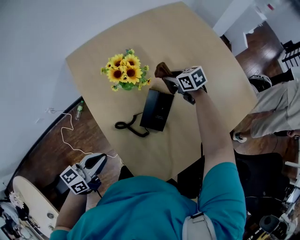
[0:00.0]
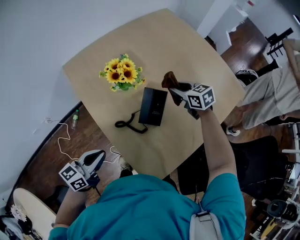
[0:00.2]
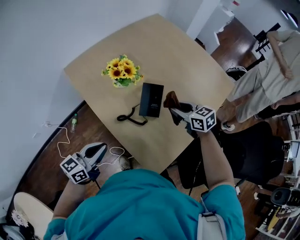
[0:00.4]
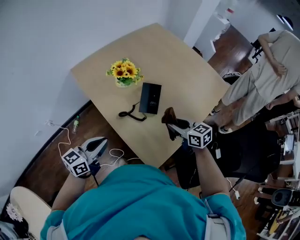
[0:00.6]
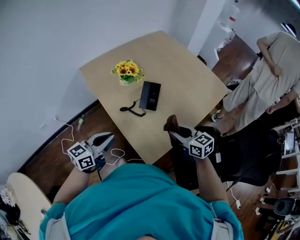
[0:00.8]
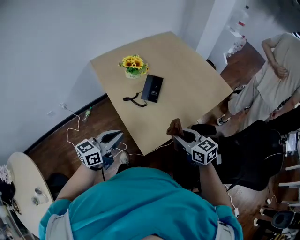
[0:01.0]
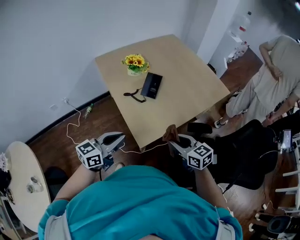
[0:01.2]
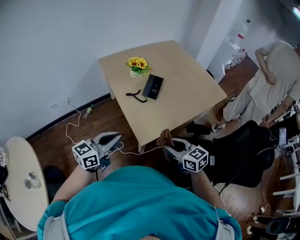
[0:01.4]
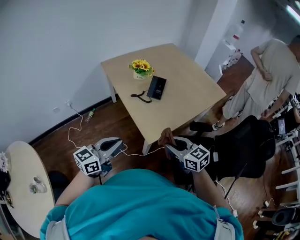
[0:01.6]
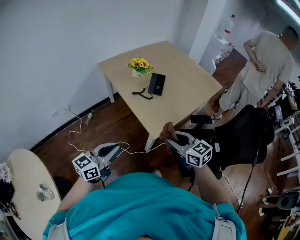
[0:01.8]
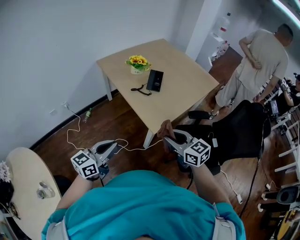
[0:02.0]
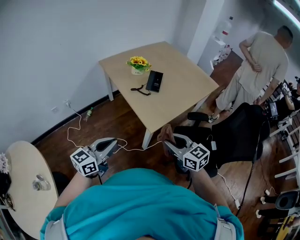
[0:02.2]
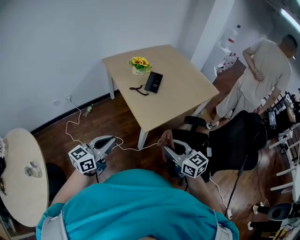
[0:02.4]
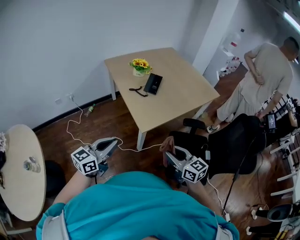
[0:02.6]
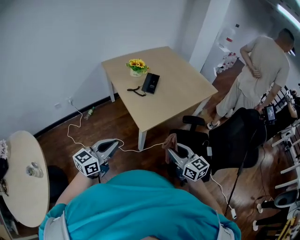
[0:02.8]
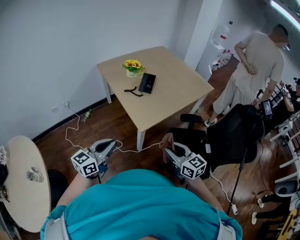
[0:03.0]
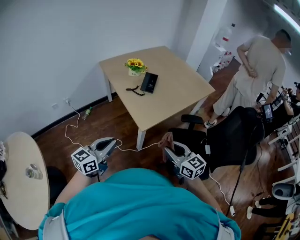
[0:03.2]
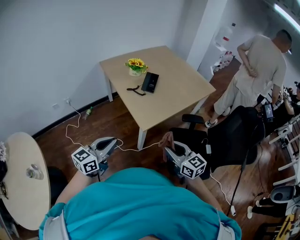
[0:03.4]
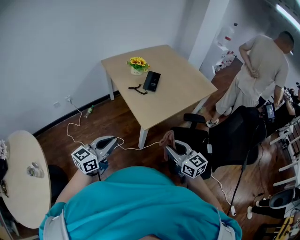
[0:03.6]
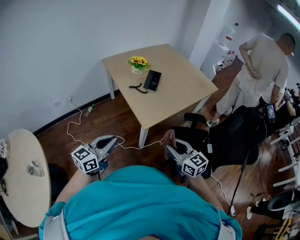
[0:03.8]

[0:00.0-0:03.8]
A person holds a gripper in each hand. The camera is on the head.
0:00.0 to 0:01.2: The left gripper shifts about 30 cm backward, upward and to the right, while the right gripper goes roughly 60 cm backward, and turns by roughly 20 degrees.
0:01.2 to 0:02.6: The two grippers go about 20 cm backward.
0:02.6 to 0:03.8: There are only small adjustments of the grippers.

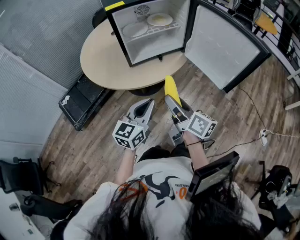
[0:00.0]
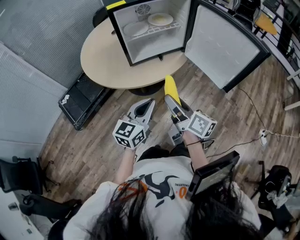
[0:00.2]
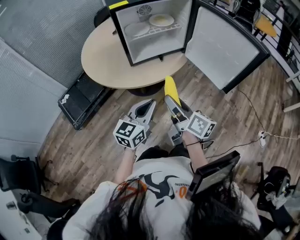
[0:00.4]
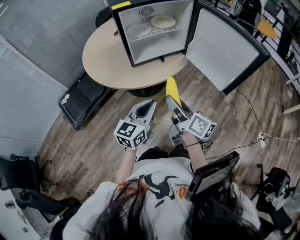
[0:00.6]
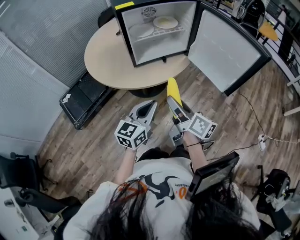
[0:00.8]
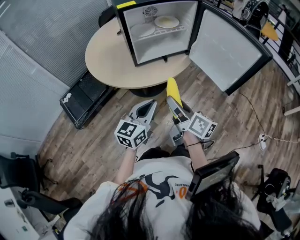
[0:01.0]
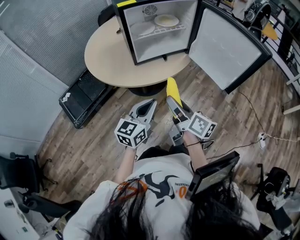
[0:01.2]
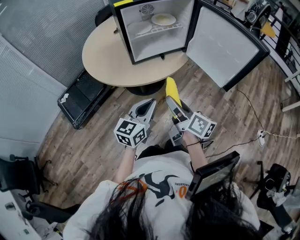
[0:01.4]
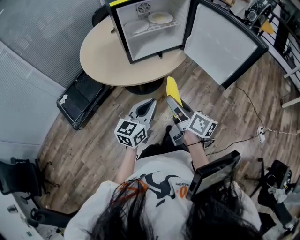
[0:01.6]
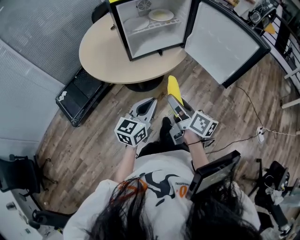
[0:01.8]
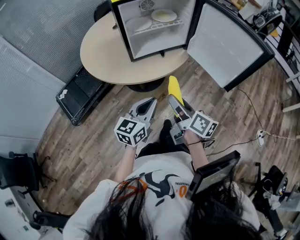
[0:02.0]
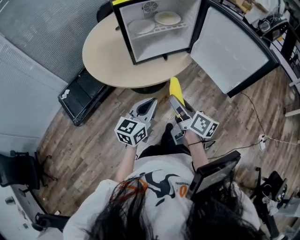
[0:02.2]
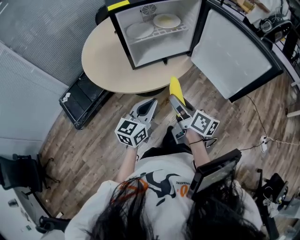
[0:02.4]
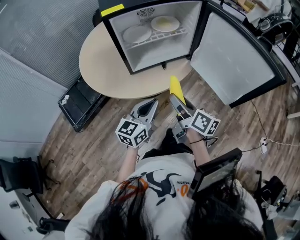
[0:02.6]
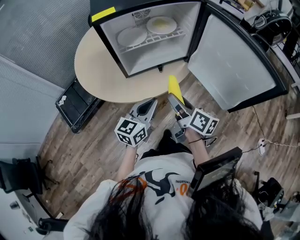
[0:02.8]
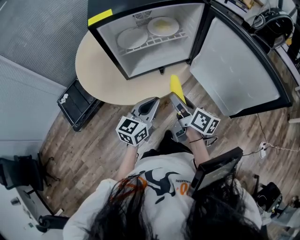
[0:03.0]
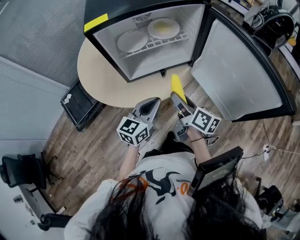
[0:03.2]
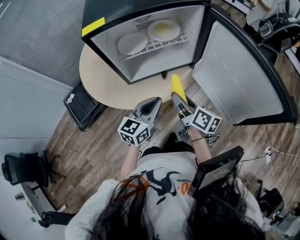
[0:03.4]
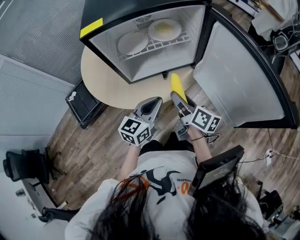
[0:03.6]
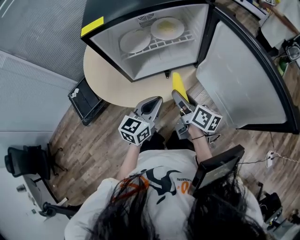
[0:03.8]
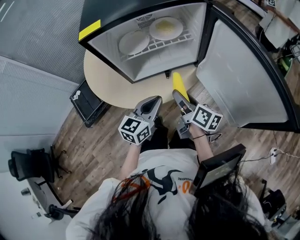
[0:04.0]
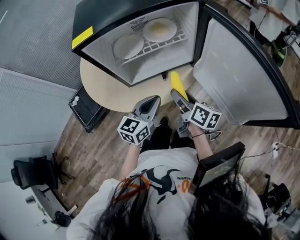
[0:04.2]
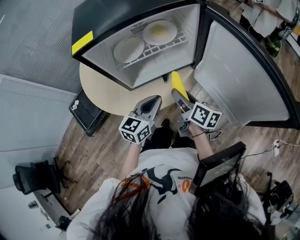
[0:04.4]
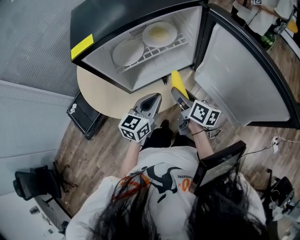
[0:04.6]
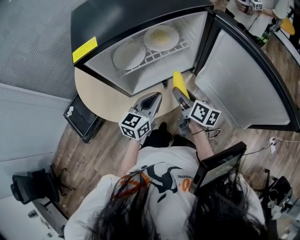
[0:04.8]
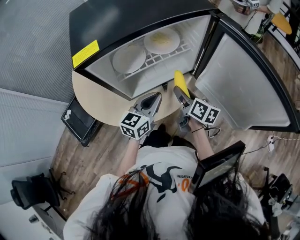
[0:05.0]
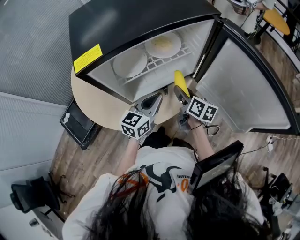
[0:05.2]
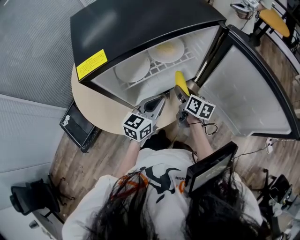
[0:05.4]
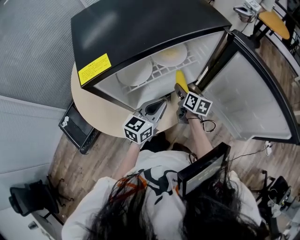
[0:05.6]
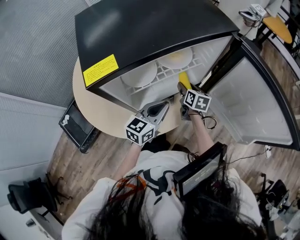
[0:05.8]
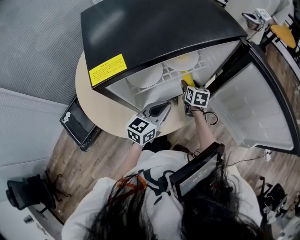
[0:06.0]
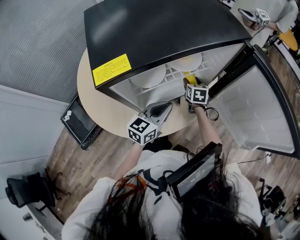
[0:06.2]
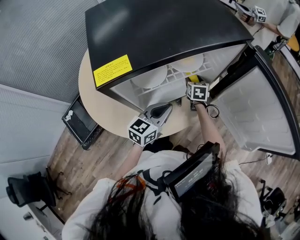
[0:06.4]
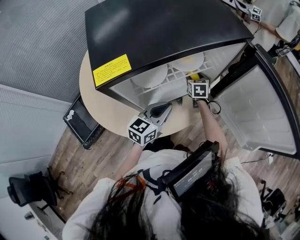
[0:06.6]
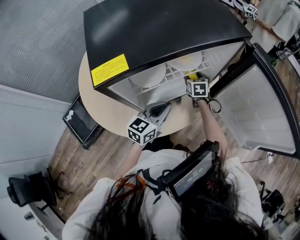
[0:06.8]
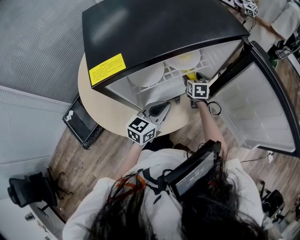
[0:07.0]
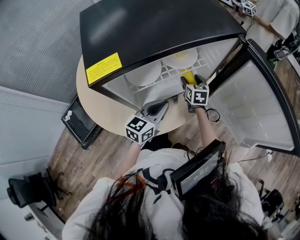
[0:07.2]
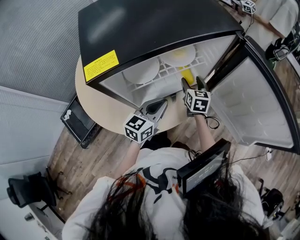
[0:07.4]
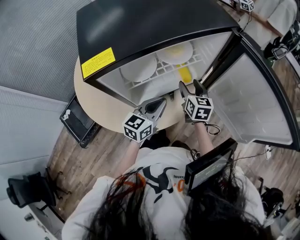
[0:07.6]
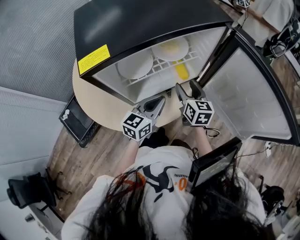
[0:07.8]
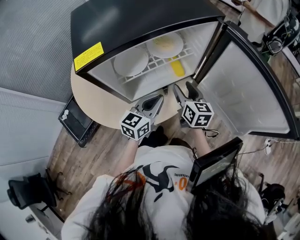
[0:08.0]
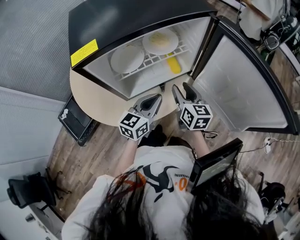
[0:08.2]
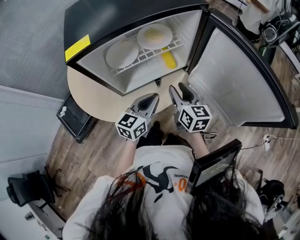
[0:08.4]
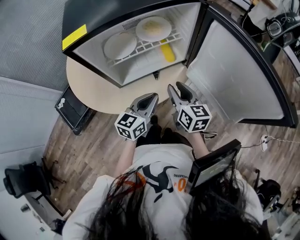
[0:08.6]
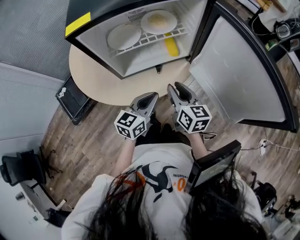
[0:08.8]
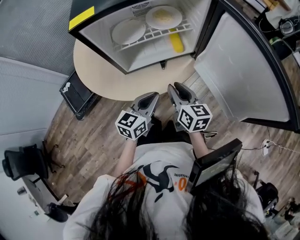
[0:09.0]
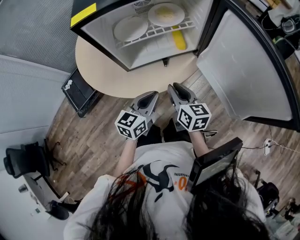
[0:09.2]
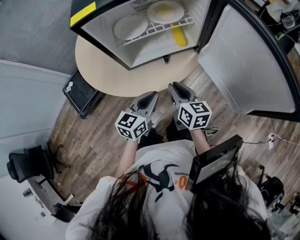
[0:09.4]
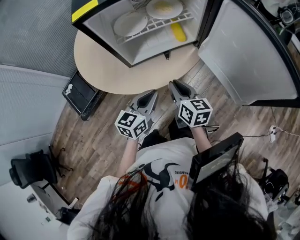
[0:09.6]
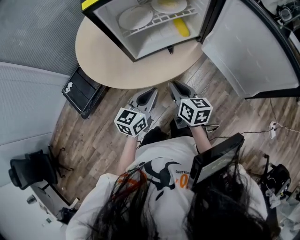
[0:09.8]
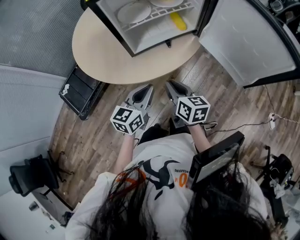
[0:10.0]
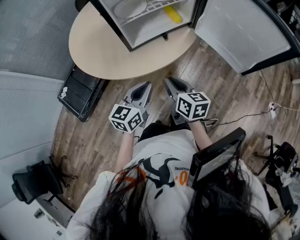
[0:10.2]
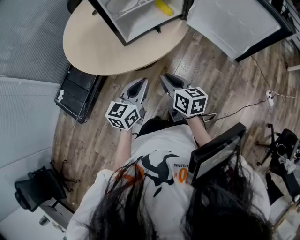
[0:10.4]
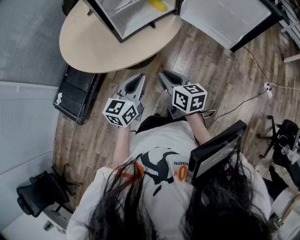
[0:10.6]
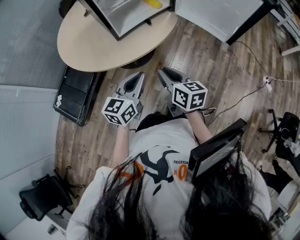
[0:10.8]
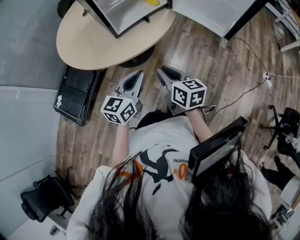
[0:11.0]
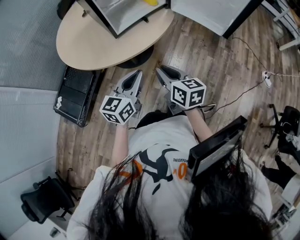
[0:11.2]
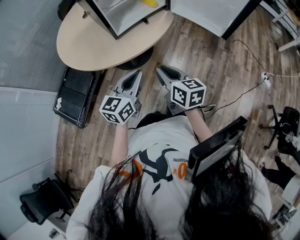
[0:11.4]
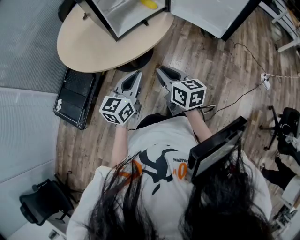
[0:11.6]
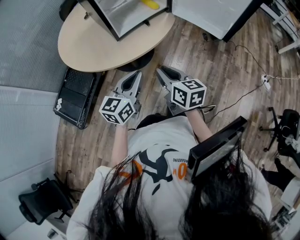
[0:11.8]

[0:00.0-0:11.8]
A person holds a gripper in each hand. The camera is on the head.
0:00.0 to 0:01.4: The grippers stay close to where they were, moving slightly.
0:01.4 to 0:03.0: The grippers both shift forward by about 15 cm.
0:03.0 to 0:04.4: The grippers both shift forward by roughly 5 cm.
0:04.4 to 0:06.0: The right gripper heads forward and downward, covering about 25 cm, and turns by some 40 degrees. Meanwhile the left gripper travels forward and to the left by approximately 10 cm.
0:06.0 to 0:07.4: The grippers make only small movements.
0:07.4 to 0:08.8: The left gripper goes roughly 10 cm backward and to the right. Meanwhile the right gripper heads backward, covering roughly 20 cm, swivels approximately 30 degrees, and closes up.
0:08.8 to 0:10.4: Both grippers move backward and to the left, about 20 cm.
0:10.4 to 0:11.8: The grippers both shift backward by some 5 cm.

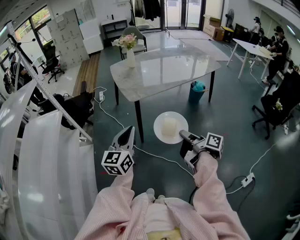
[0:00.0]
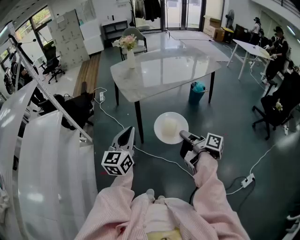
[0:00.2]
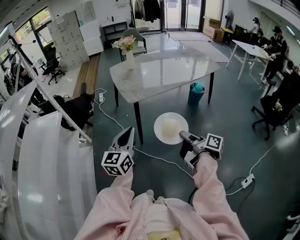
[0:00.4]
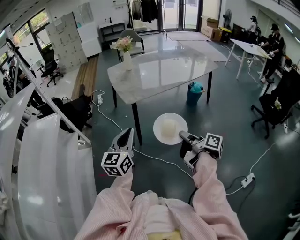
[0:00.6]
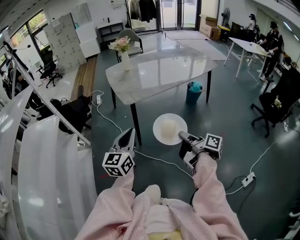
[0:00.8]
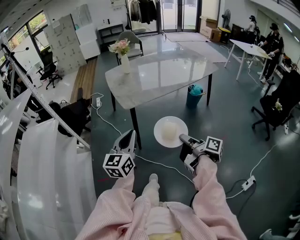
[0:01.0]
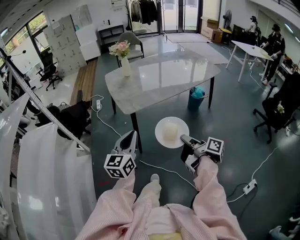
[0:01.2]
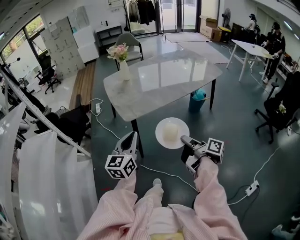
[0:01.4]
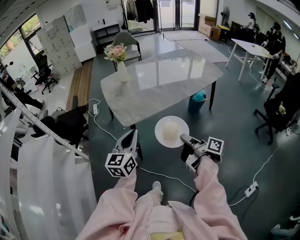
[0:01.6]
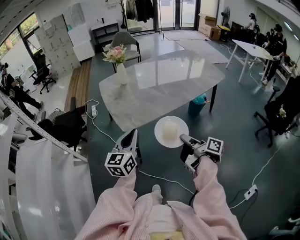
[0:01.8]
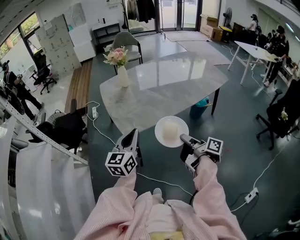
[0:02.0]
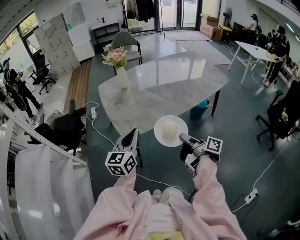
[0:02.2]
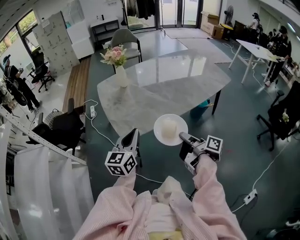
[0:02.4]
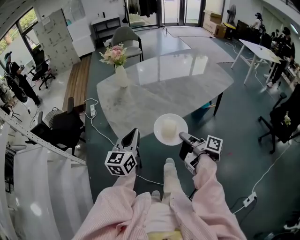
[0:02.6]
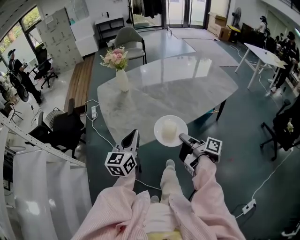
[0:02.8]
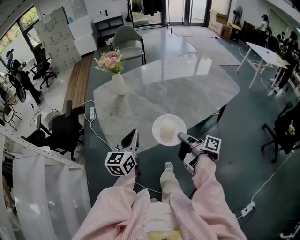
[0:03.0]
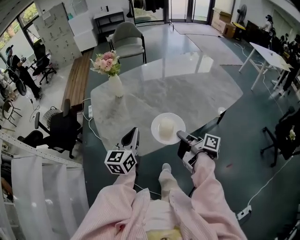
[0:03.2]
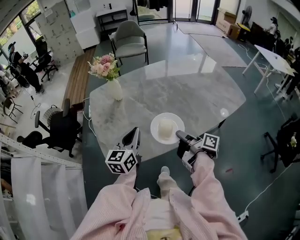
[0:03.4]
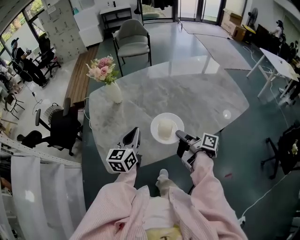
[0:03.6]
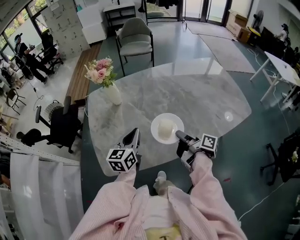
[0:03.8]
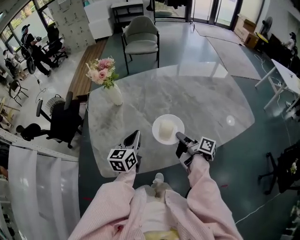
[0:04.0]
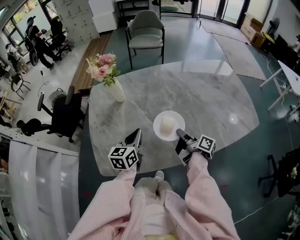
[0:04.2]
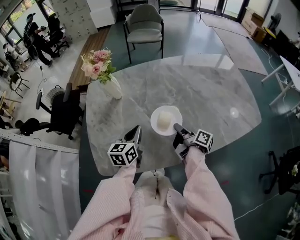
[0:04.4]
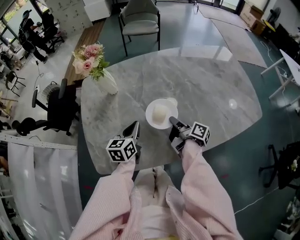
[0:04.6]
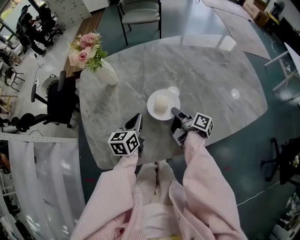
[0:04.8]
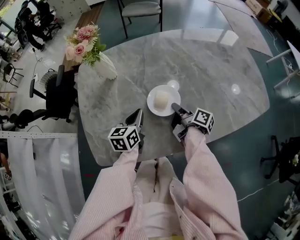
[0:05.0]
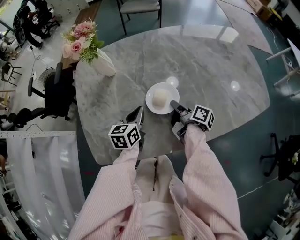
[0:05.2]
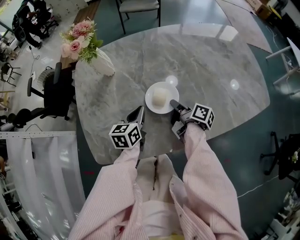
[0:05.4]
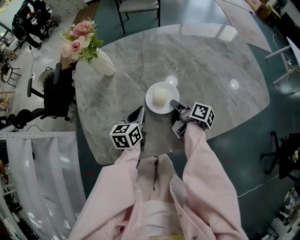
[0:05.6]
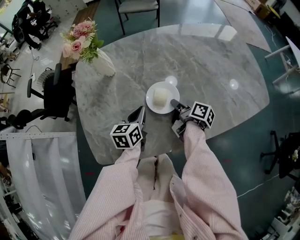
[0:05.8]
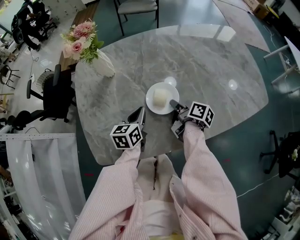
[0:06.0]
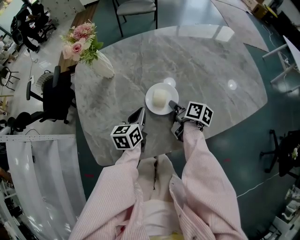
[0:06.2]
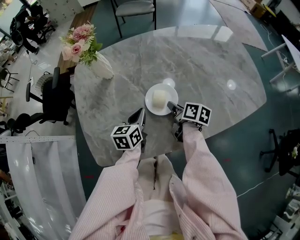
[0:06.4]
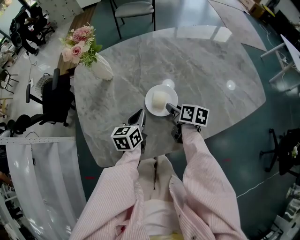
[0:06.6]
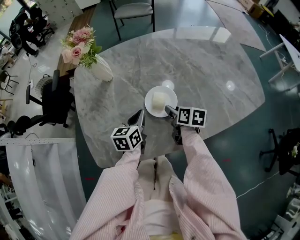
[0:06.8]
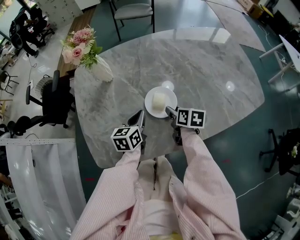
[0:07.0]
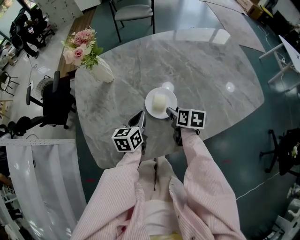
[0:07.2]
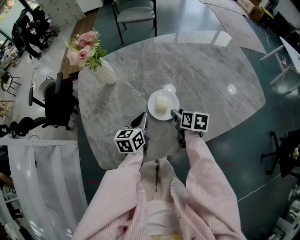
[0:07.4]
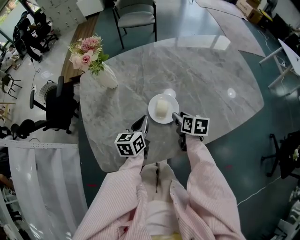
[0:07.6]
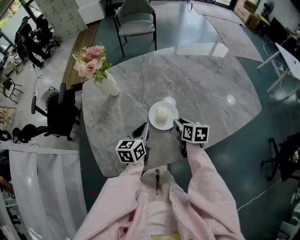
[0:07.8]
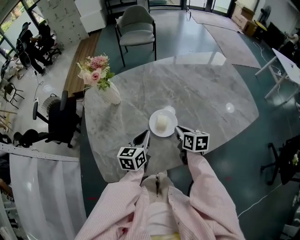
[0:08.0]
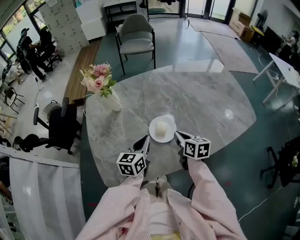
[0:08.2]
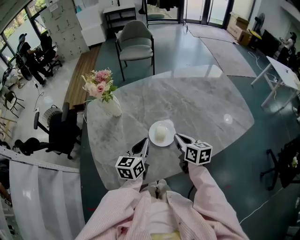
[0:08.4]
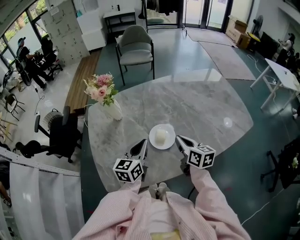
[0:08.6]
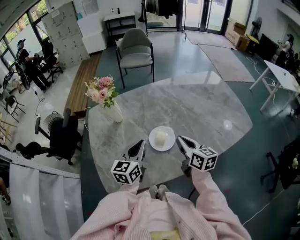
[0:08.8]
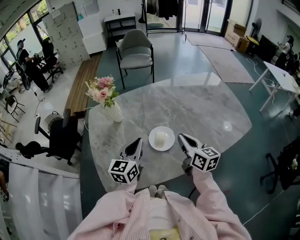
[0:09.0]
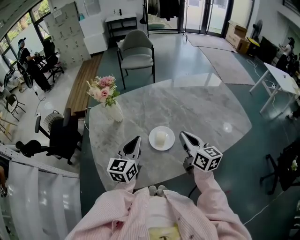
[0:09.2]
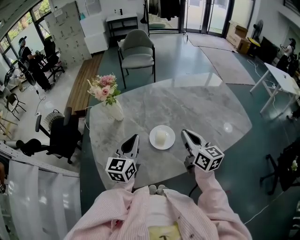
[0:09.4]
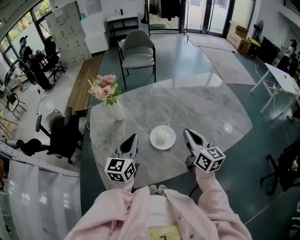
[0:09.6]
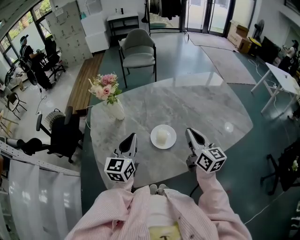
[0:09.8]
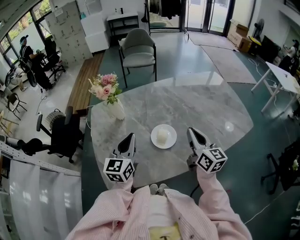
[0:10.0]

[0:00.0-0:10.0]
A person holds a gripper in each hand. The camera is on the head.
0:00.0 to 0:01.4: Both grippers move forward, some 15 cm.
0:01.4 to 0:02.8: The grippers both shift forward by some 30 cm.
0:02.8 to 0:04.2: The left gripper moves forward and to the right, approximately 25 cm; the right gripper is displaced forward by some 30 cm.
0:04.2 to 0:05.8: The right gripper heads downward and forward, covering some 10 cm. Meanwhile the left gripper goes roughly 10 cm downward.
0:05.8 to 0:07.2: The right gripper swivels roughly 40 degrees, and opens.
0:07.2 to 0:08.6: The two grippers go roughly 15 cm upward. The right gripper rotates approximately 30 degrees, and closes up.
0:08.6 to 0:10.0: The right gripper travels upward by approximately 10 cm, and rotates roughly 20 degrees, while the left gripper is displaced upward and to the left by roughly 10 cm.
